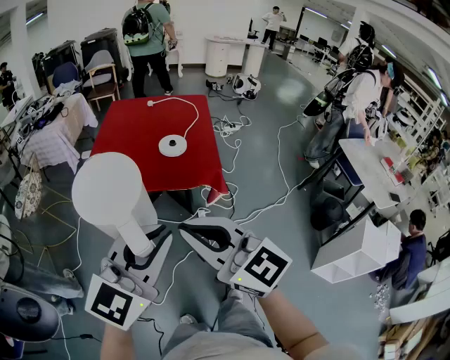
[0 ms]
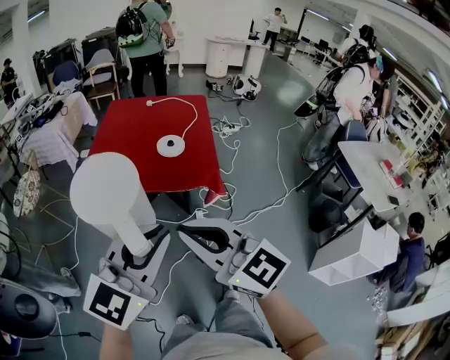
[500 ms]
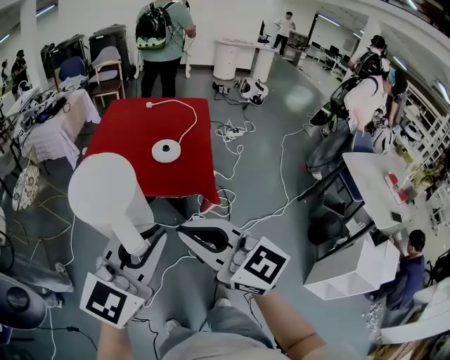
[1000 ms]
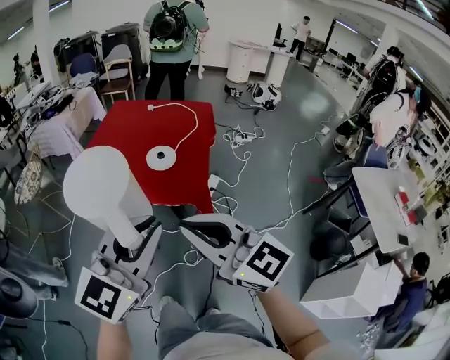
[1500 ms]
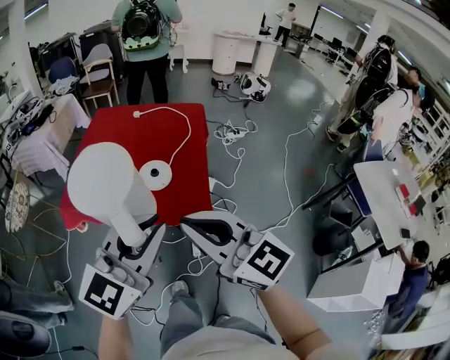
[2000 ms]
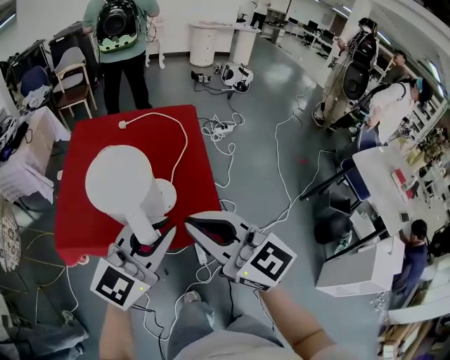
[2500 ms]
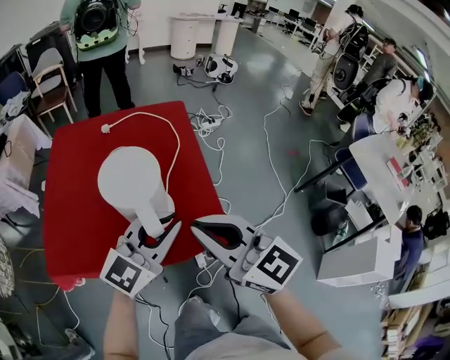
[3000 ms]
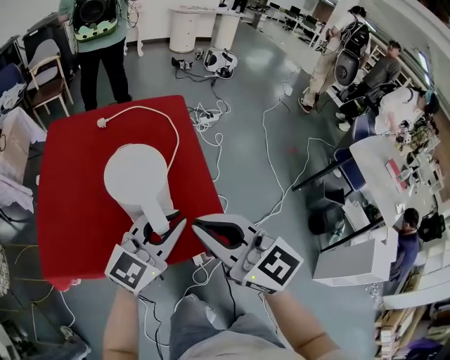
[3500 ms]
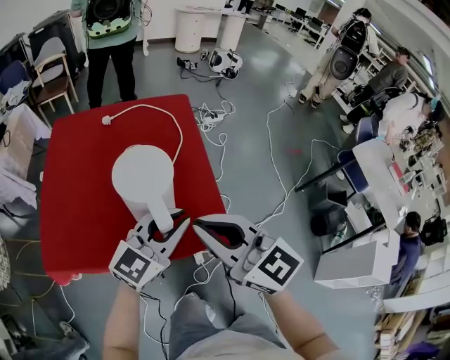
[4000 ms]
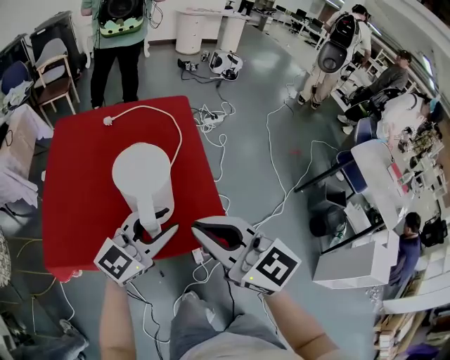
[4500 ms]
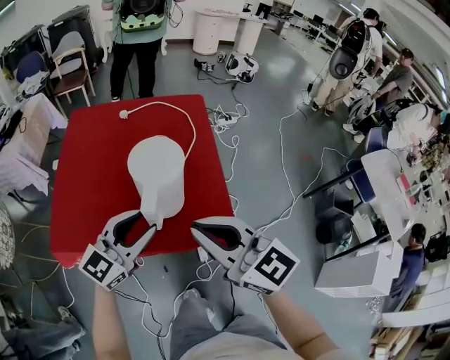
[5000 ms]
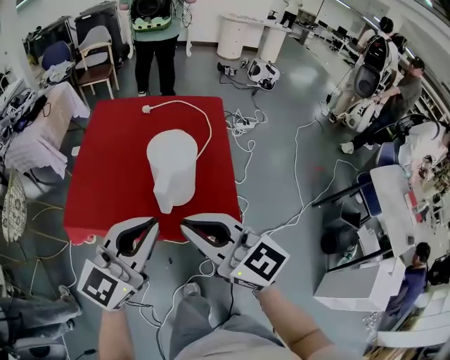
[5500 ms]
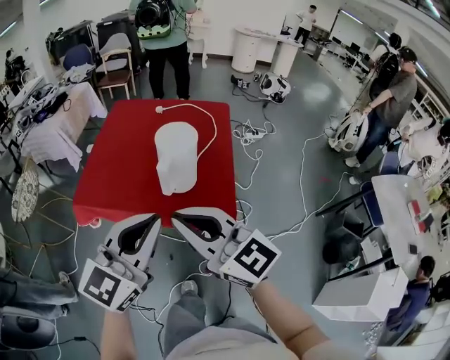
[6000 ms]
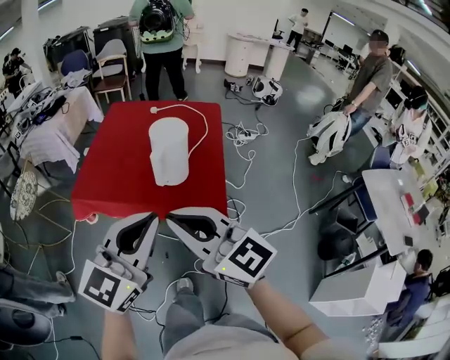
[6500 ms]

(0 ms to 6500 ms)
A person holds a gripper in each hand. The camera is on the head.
0 ms - 2000 ms: Both grippers move forward and to the right, some 25 cm.
2000 ms - 4500 ms: Both grippers move forward and downward, roughly 25 cm. The left gripper rotates about 30 degrees.
4500 ms - 6500 ms: The right gripper moves some 20 cm, and swivels some 20 degrees; the left gripper shifts by some 25 cm, changes its angle by about 30 degrees, and closes its fingers.

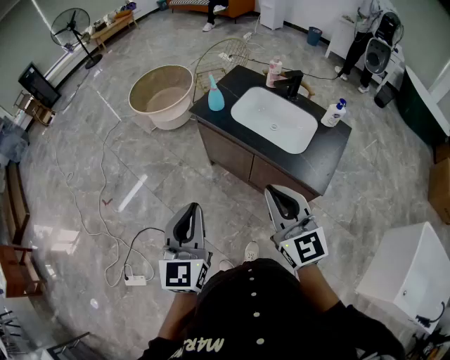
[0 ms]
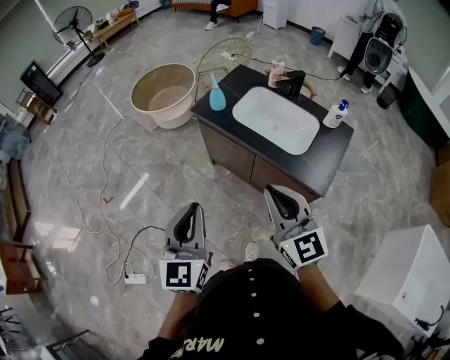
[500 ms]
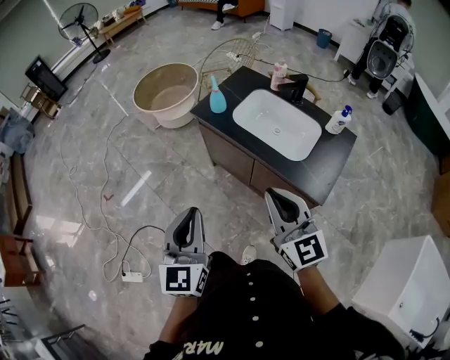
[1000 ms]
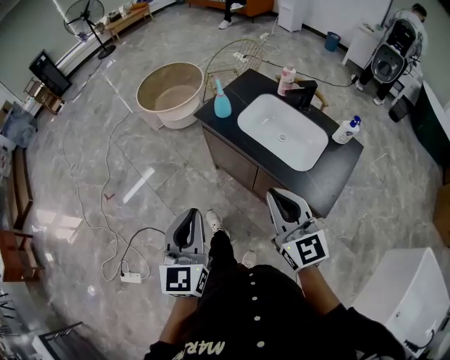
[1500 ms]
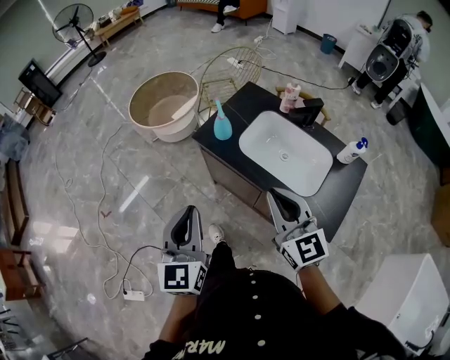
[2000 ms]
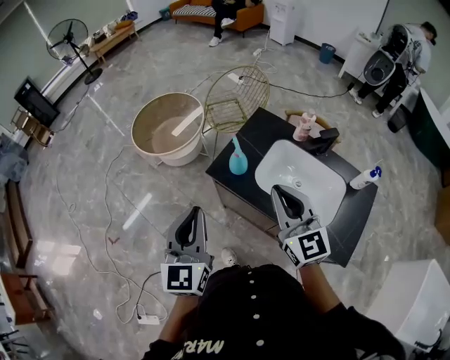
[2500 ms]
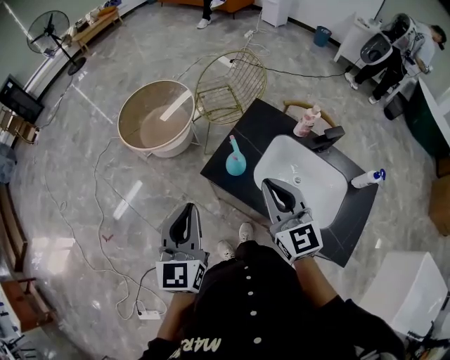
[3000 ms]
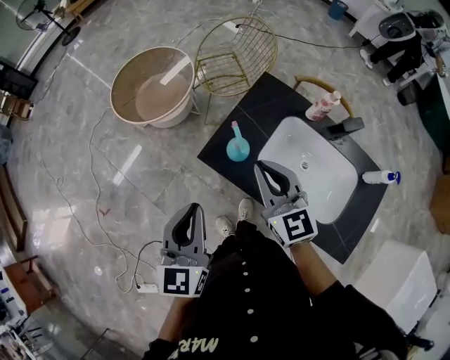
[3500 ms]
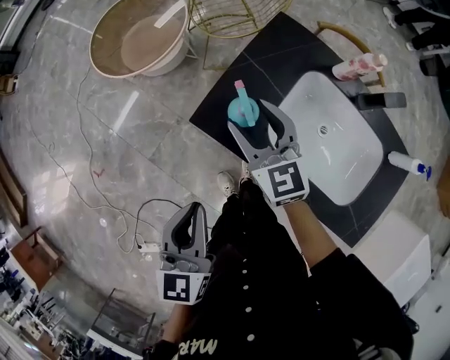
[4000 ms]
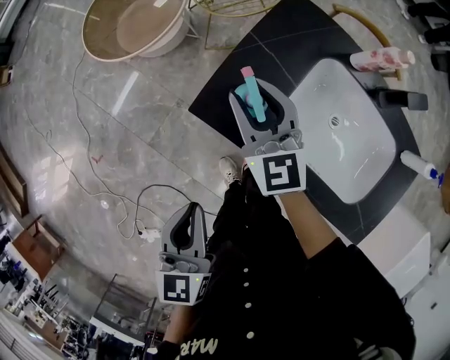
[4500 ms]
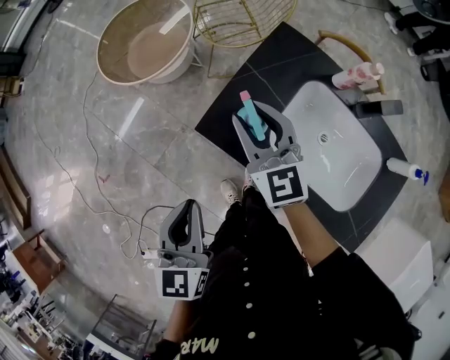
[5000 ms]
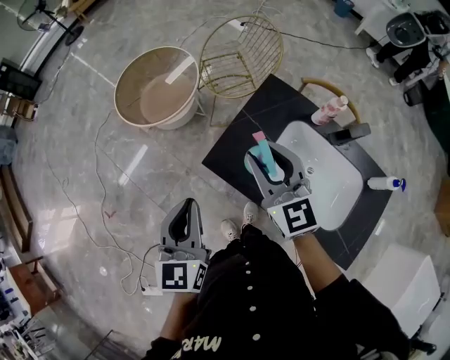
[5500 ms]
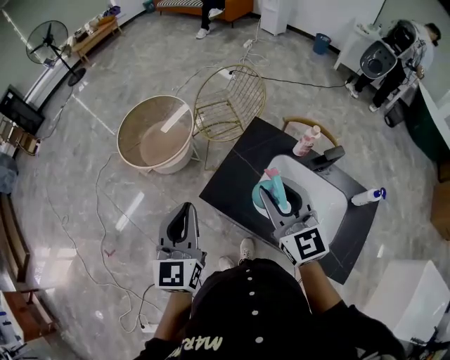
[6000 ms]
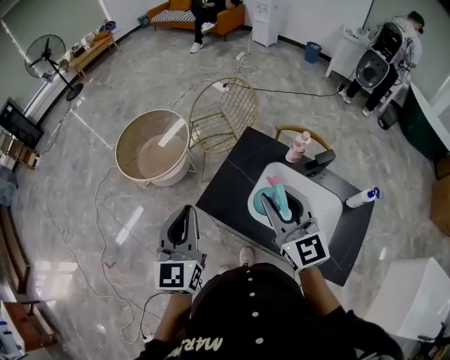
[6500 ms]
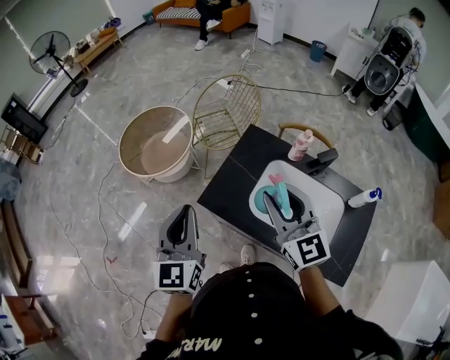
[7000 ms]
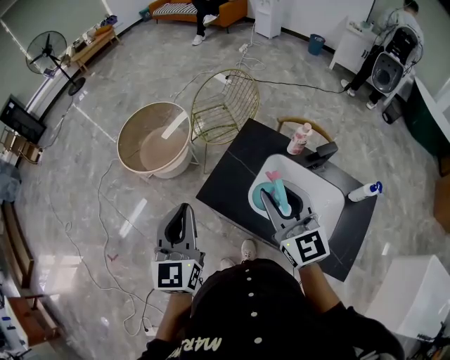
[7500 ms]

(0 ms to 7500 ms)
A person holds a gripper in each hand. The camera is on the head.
0 ms - 2000 ms: Both grippers move forward, approximately 20 cm.
2000 ms - 4000 ms: The left gripper moves forward and downward, some 25 cm, and rotates about 20 degrees. Meanwhile the right gripper goes some 40 cm forward and downward, and opens up.
4000 ms - 5500 ms: The left gripper moves upward and forward, about 10 cm, while the right gripper is displaced upward by about 15 cm, and closes.
5500 ms - 7500 ms: The left gripper heads upward, covering approximately 10 cm, while the right gripper heads backward, upward and to the right, covering about 15 cm.

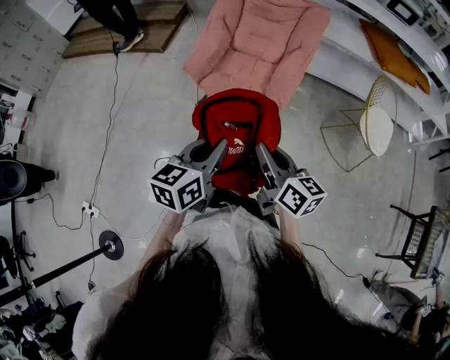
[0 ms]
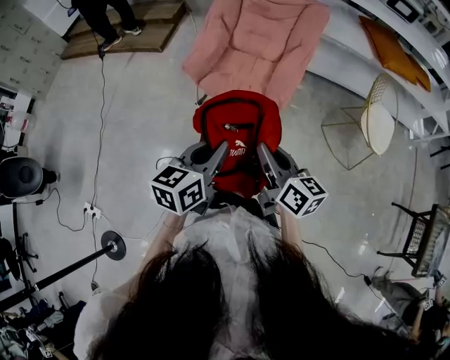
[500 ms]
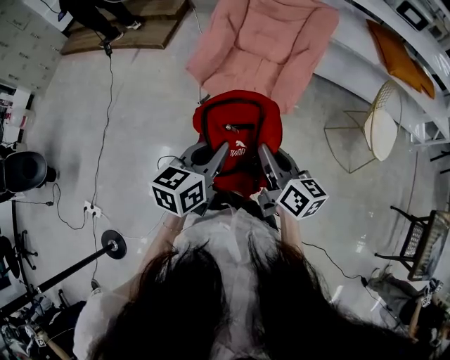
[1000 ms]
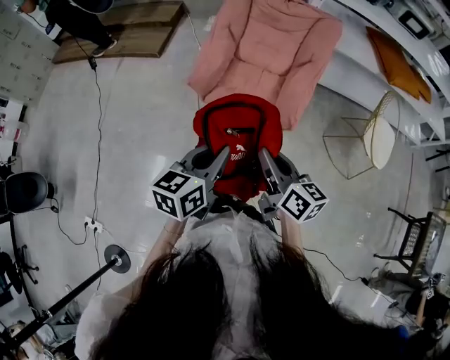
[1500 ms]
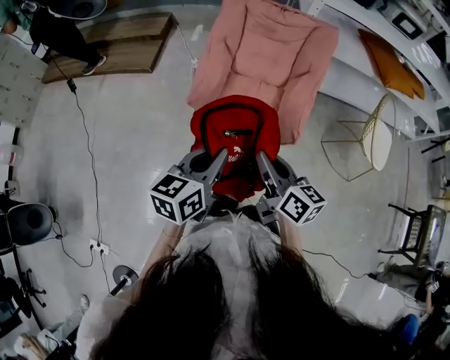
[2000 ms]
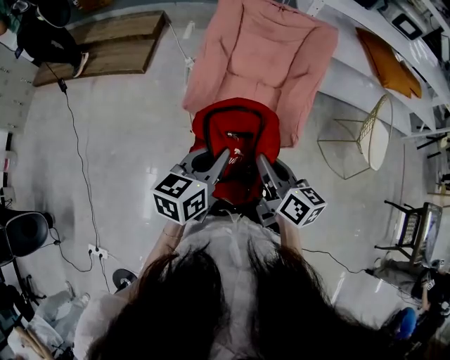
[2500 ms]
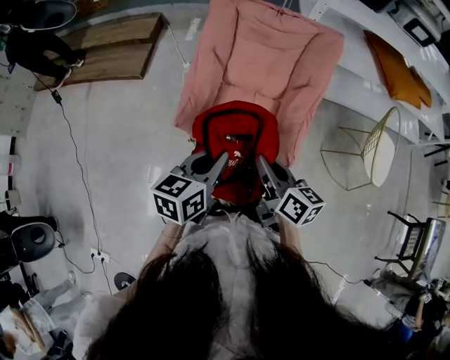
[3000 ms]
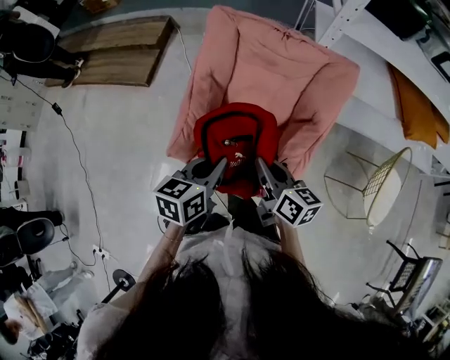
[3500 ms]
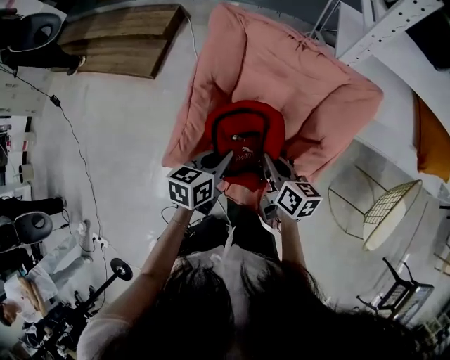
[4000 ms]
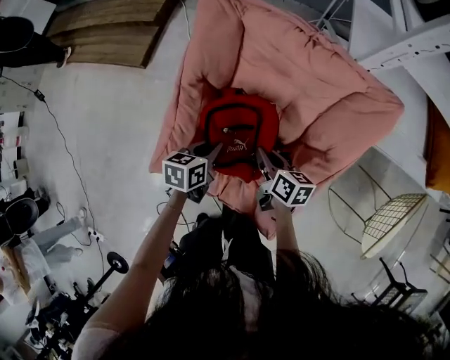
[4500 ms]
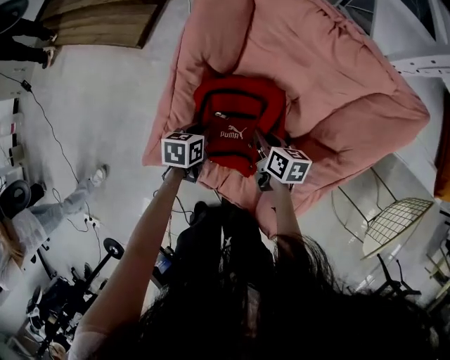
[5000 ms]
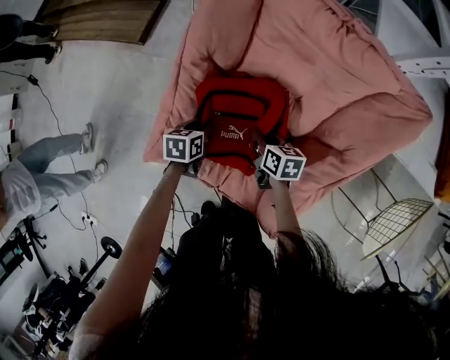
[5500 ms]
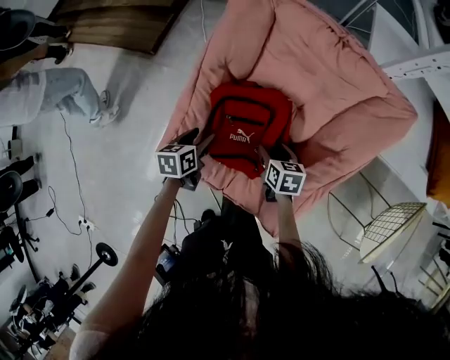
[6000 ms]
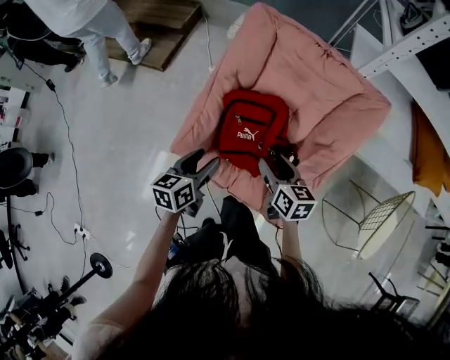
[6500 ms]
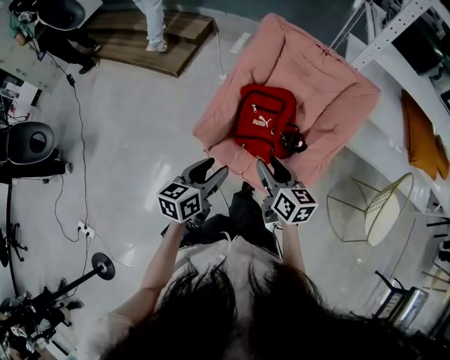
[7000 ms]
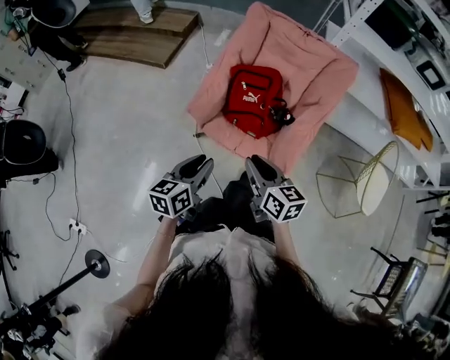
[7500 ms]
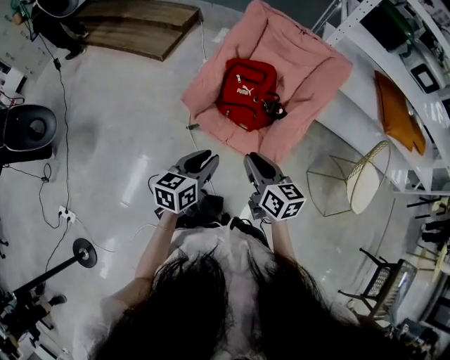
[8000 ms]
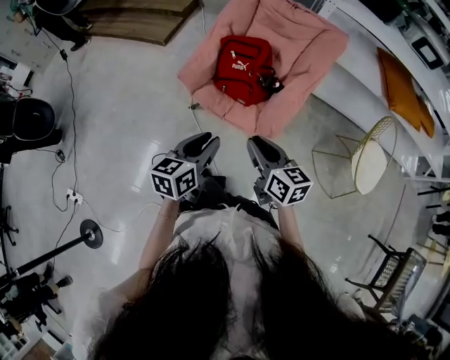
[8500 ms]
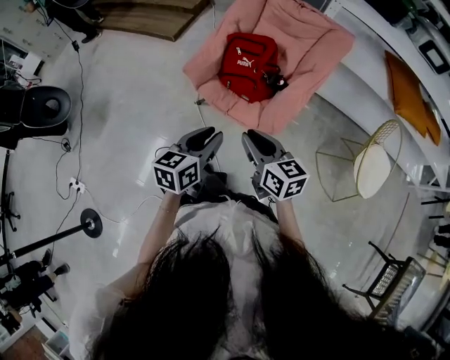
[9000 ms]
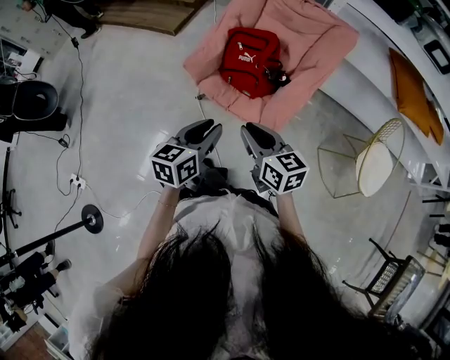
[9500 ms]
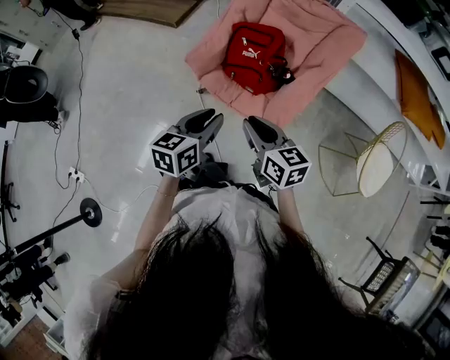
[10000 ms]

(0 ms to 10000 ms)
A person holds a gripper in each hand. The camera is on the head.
0 ms - 2000 ms: The two grippers go some 20 cm forward and to the left.
2000 ms - 4000 ms: Both grippers are carried forward, approximately 40 cm. The left gripper moves downward, about 20 cm.
4000 ms - 6000 ms: The left gripper shifts some 25 cm downward and to the left, and opens up; the right gripper shifts approximately 20 cm downward, swivels roughly 30 degrees, and opens.
6000 ms - 8000 ms: Both grippers are carried backward, approximately 40 cm. Both grippers travel together upward, roughly 30 cm. The left gripper rotates roughly 30 degrees, and closes its fingers. The right gripper swivels roughly 30 degrees, and closes.
8000 ms - 10000 ms: The left gripper heads to the right, covering approximately 5 cm.

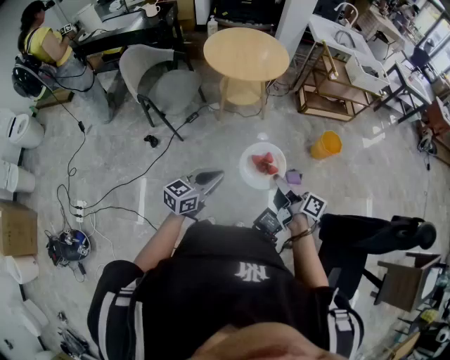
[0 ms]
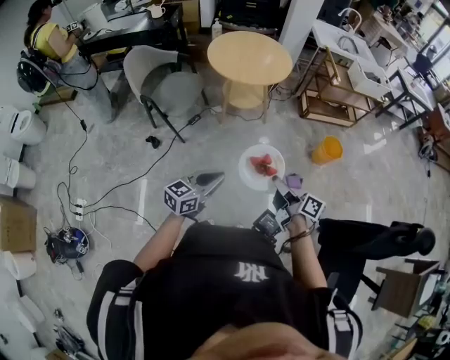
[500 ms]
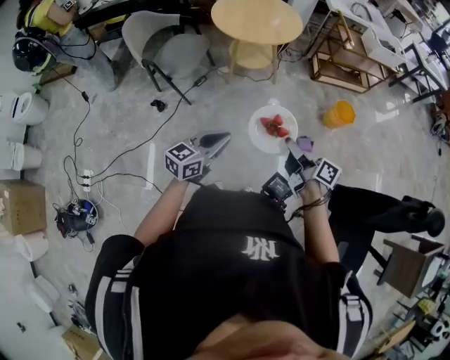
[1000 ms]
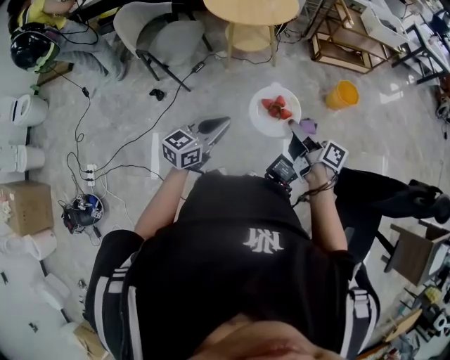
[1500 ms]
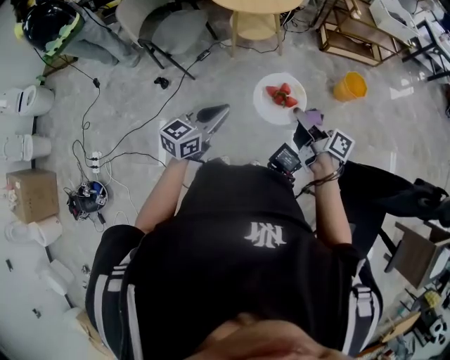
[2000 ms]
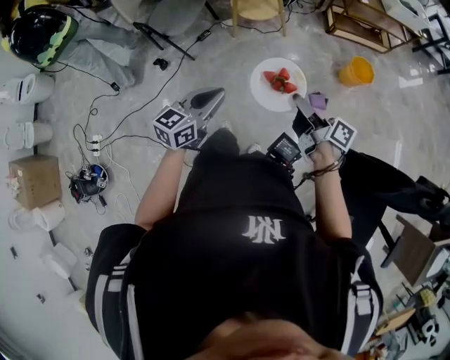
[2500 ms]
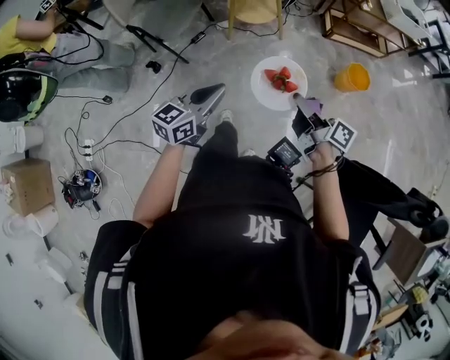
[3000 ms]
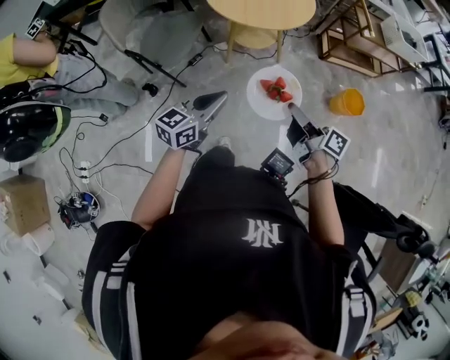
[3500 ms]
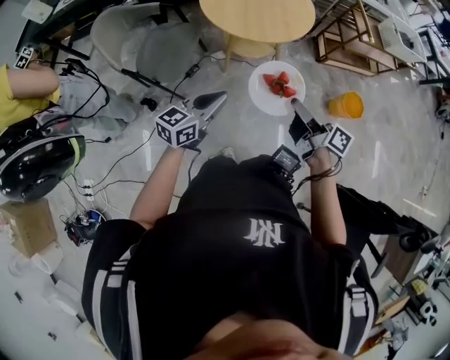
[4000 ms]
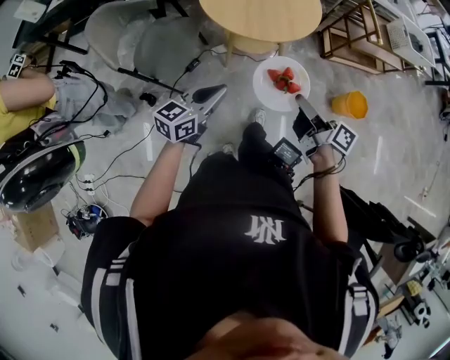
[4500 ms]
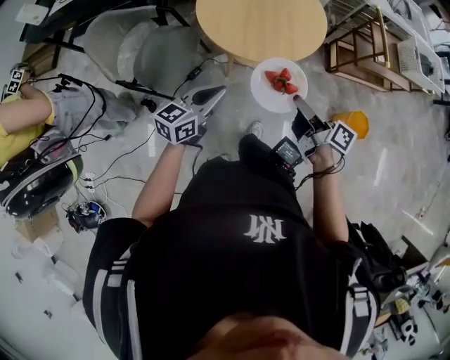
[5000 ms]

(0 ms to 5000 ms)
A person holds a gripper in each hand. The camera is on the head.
0 ms - 2500 ms: The grippers make only small movements.
2500 ms - 5000 ms: The two grippers travel together, forward, approximately 50 cm.
